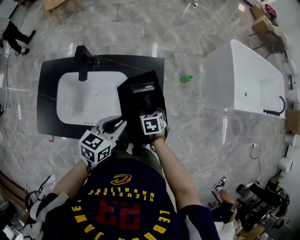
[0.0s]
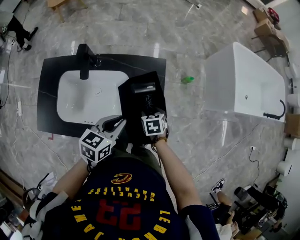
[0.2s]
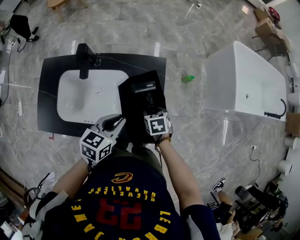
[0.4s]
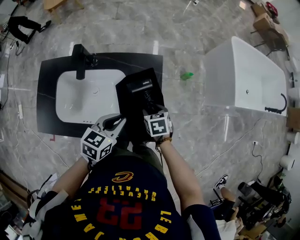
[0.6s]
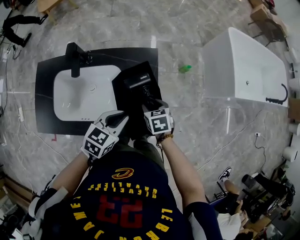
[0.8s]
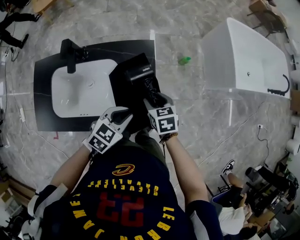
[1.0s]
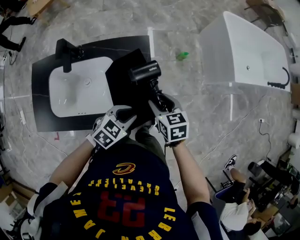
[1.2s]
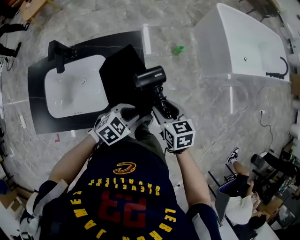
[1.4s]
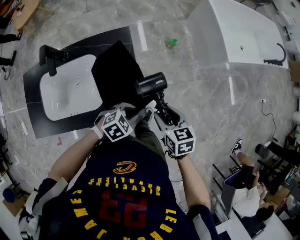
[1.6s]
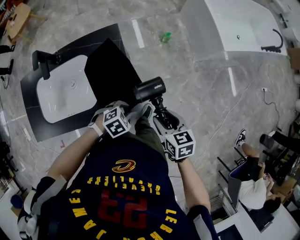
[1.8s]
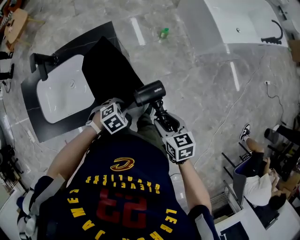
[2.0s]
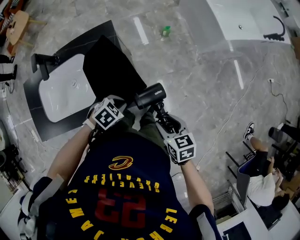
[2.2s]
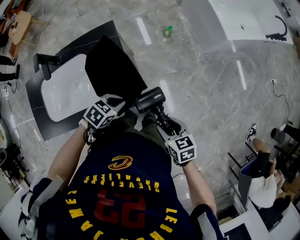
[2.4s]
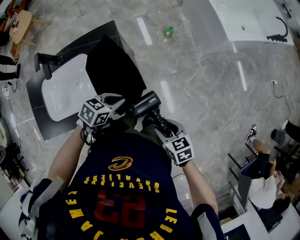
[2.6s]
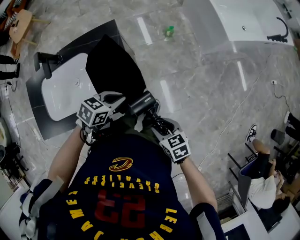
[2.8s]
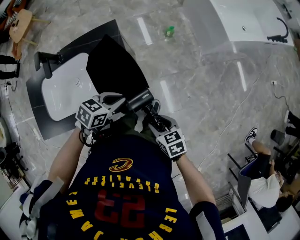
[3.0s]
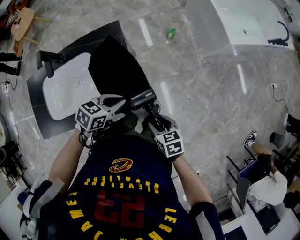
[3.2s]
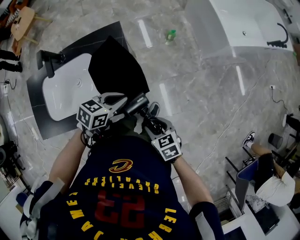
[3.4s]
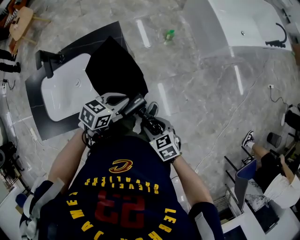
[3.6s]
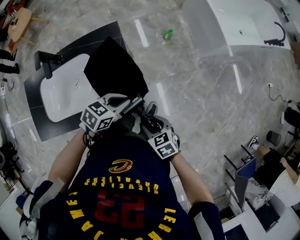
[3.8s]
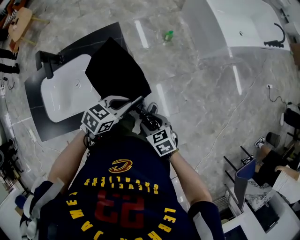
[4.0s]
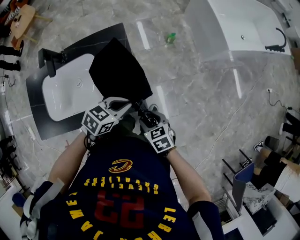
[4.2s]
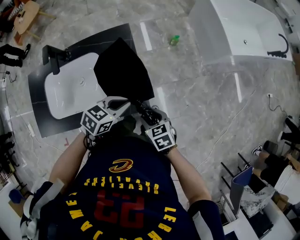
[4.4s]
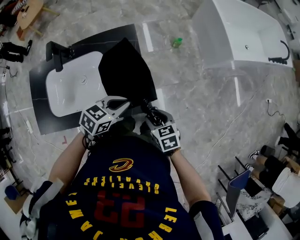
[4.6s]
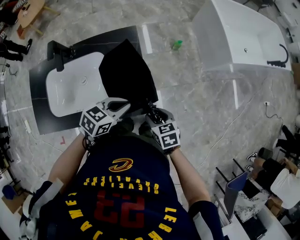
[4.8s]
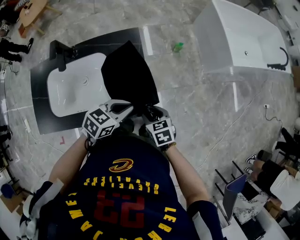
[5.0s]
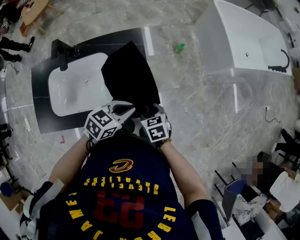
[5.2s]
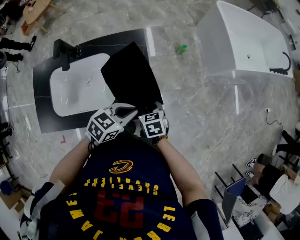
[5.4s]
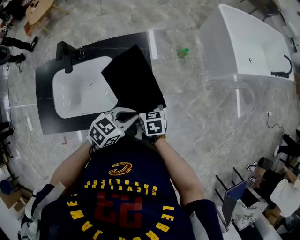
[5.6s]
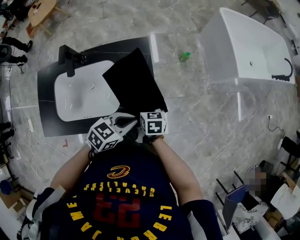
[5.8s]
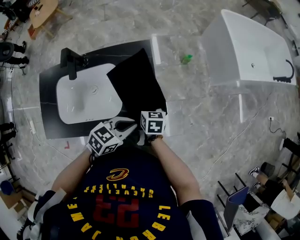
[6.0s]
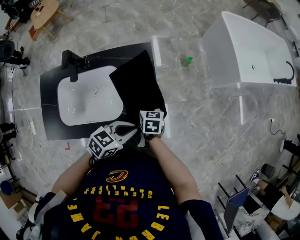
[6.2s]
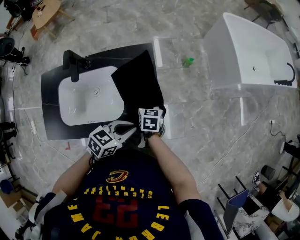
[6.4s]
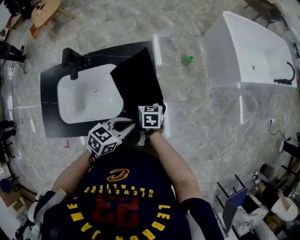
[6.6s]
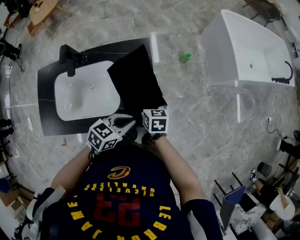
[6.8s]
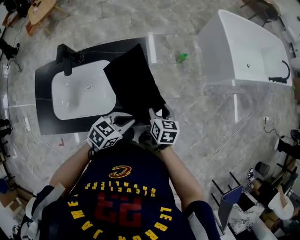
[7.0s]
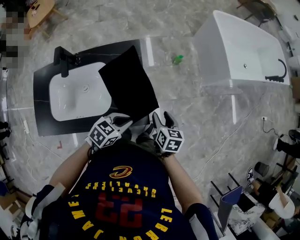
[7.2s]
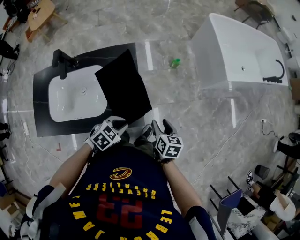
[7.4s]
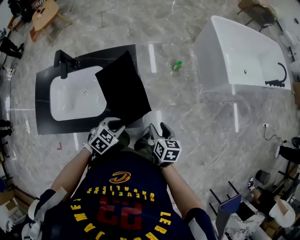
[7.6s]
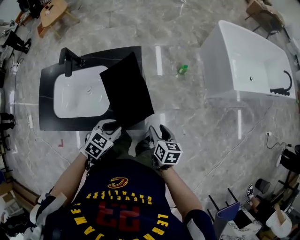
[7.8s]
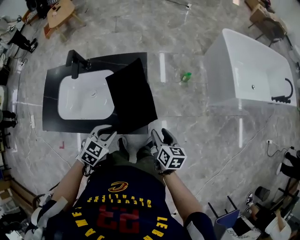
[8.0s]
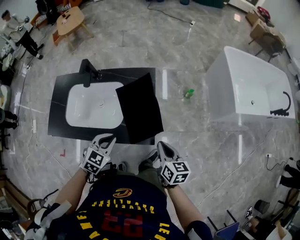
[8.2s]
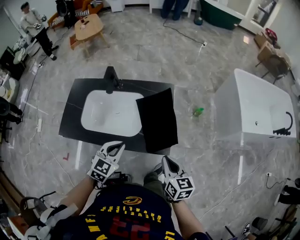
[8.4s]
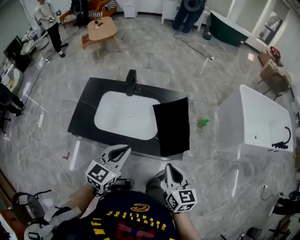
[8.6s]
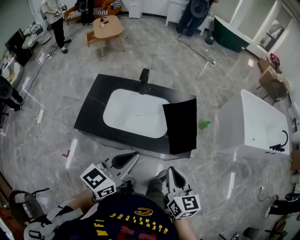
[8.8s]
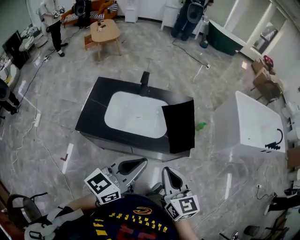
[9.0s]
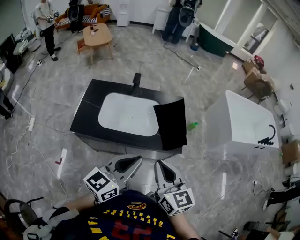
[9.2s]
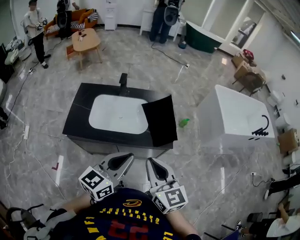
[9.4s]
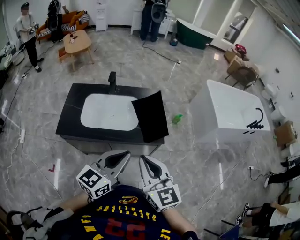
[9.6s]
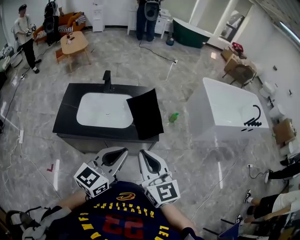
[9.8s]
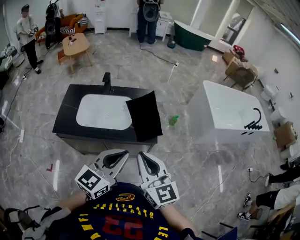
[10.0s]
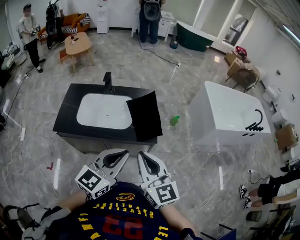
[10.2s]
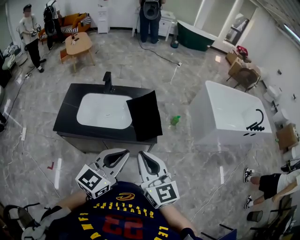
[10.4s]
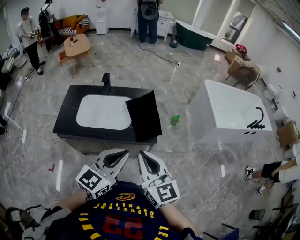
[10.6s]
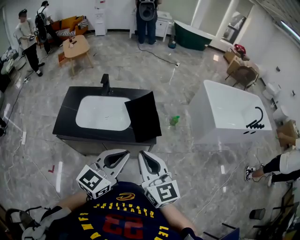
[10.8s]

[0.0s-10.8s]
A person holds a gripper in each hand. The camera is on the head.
0.0s to 1.6s: The right gripper ends up roughly 25 cm from where it was, and swivels roughly 20 degrees, while the left gripper changes place by roughly 20 cm, and rotates roughly 60 degrees.
1.6s to 3.0s: The right gripper changes place by some 15 cm. The left gripper changes place by approximately 5 cm, and changes its angle by about 30 degrees.
3.0s to 4.6s: The right gripper travels to the left and forward by roughly 10 cm.
4.6s to 6.2s: The right gripper shifts approximately 15 cm forward and to the left.
6.2s to 7.8s: The right gripper heads to the right, covering about 20 cm; the left gripper swivels roughly 30 degrees.
7.8s to 9.2s: The left gripper shifts about 40 cm upward, backward and to the left, and points its fingers some 50 degrees further upward. Meanwhile the right gripper heads upward, to the left and backward, covering some 50 cm, changes its angle by approximately 40 degrees, and closes.
9.2s to 10.8s: The two grippers go some 15 cm to the right.

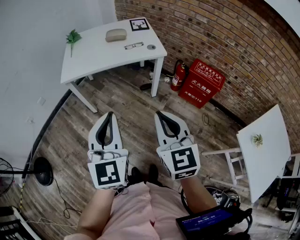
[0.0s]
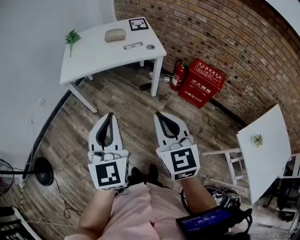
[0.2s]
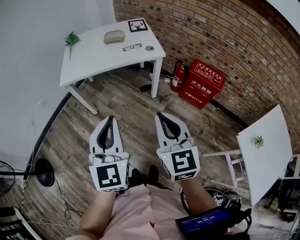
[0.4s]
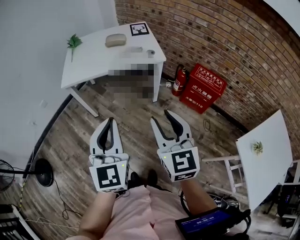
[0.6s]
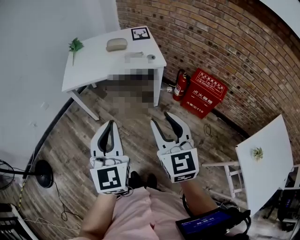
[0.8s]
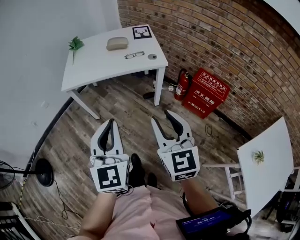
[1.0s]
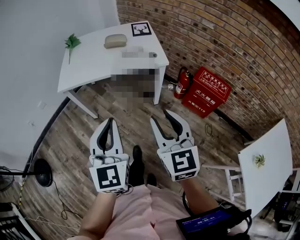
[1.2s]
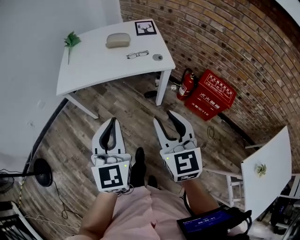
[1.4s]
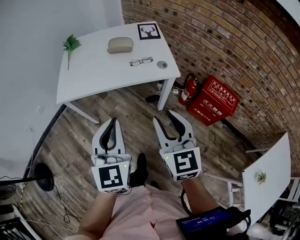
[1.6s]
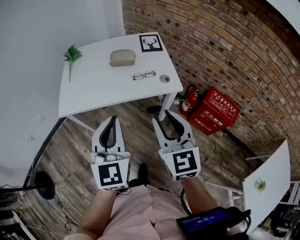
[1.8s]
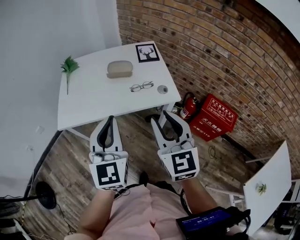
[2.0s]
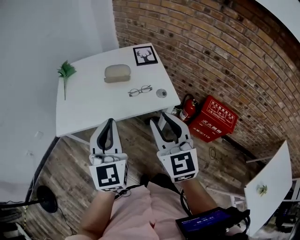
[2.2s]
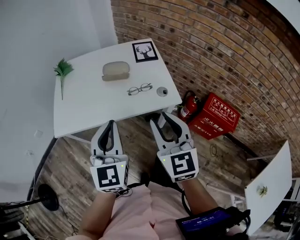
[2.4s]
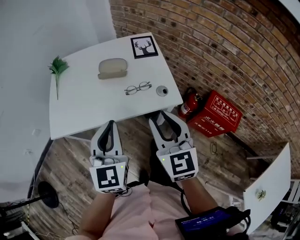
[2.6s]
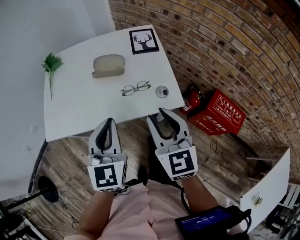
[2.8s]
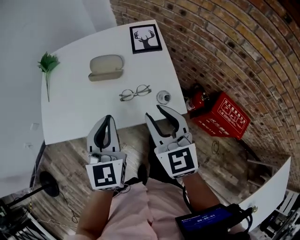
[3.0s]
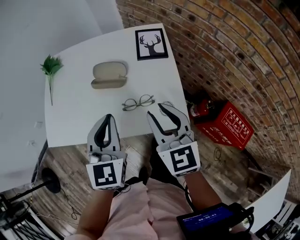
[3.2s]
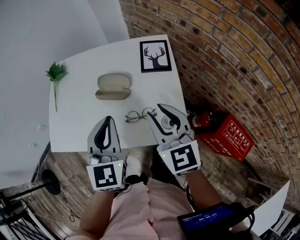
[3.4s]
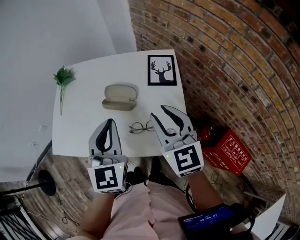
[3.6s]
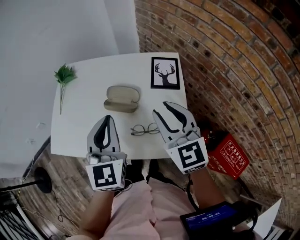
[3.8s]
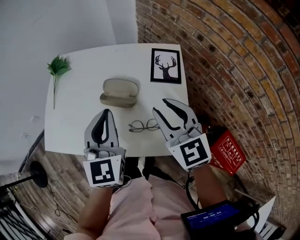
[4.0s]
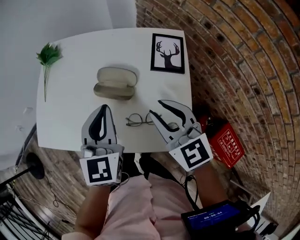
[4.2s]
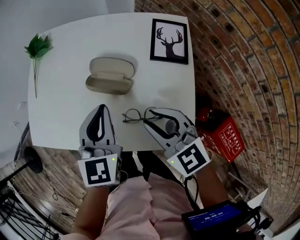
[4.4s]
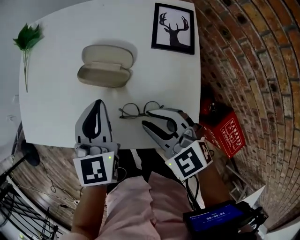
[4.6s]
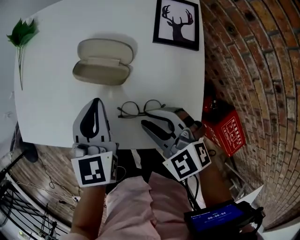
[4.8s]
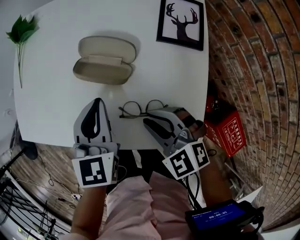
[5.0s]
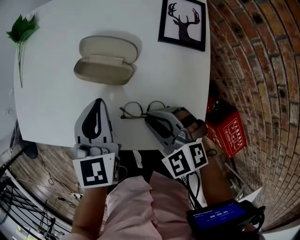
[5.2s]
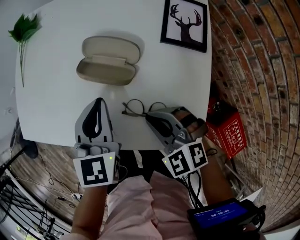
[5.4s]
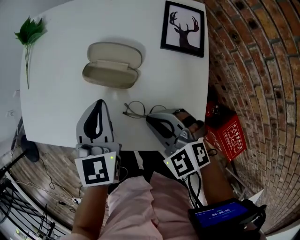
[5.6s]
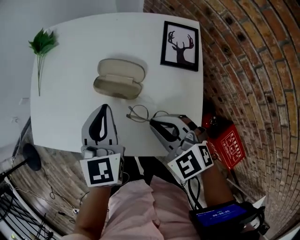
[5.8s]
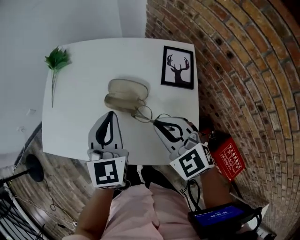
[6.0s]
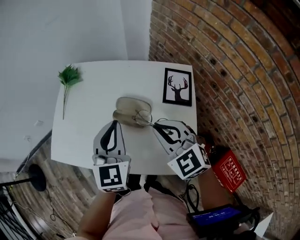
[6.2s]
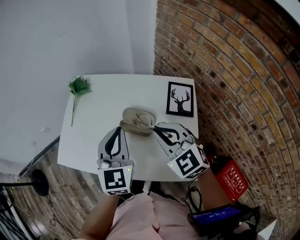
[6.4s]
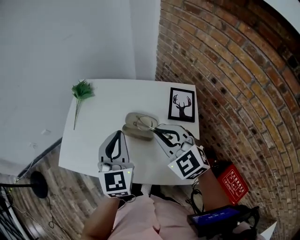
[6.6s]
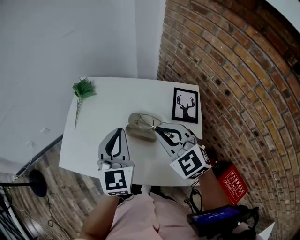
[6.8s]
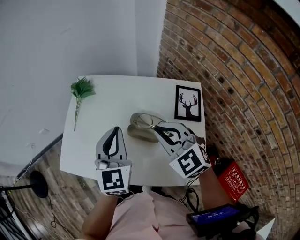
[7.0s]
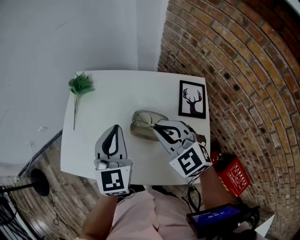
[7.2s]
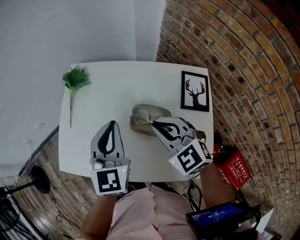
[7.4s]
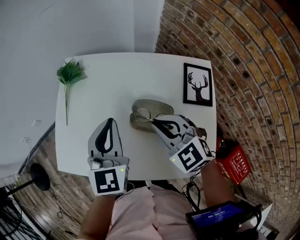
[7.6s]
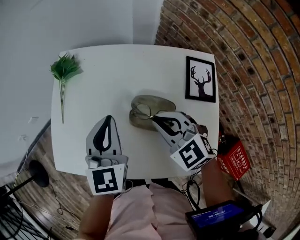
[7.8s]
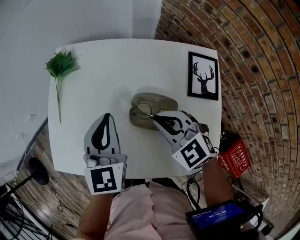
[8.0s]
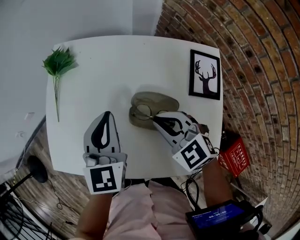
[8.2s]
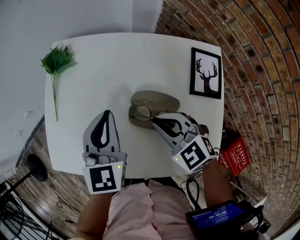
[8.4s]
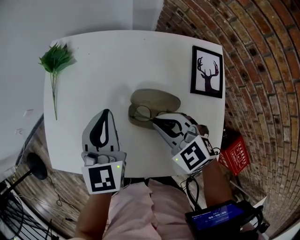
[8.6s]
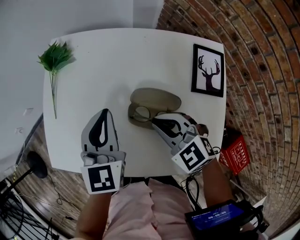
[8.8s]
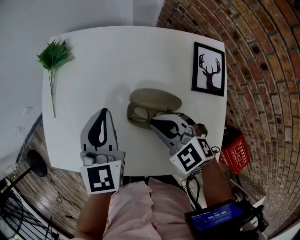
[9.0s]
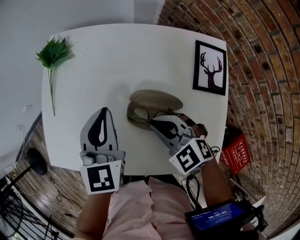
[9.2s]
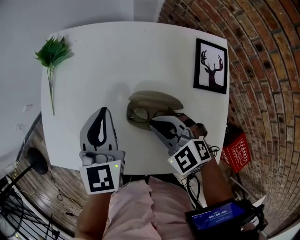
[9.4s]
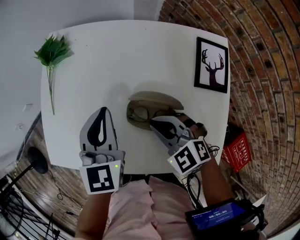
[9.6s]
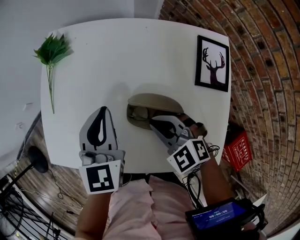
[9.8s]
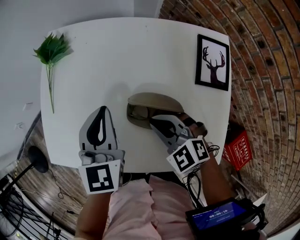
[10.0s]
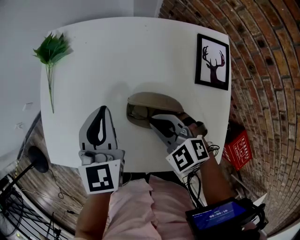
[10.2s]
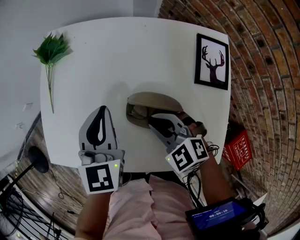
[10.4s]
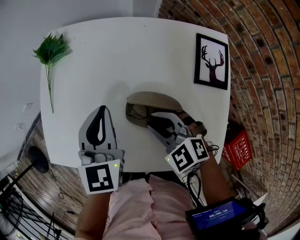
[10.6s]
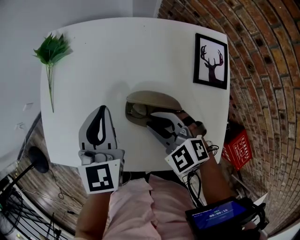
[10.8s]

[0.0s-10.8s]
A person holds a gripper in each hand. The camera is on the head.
0.0s to 1.6s: Both grippers move forward, about 20 cm. The right gripper opens.
1.6s to 3.0s: Both grippers move forward, roughly 30 cm.
3.0s to 4.6s: The grippers both shift forward and downward by approximately 20 cm. The right gripper rotates about 50 degrees.
4.6s to 6.2s: The left gripper goes some 10 cm upward, while the right gripper heads upward and forward, covering roughly 15 cm, and closes its fingers.
6.2s to 7.8s: The left gripper heads forward and to the left, covering roughly 10 cm, while the right gripper moves forward, downward and to the left, some 15 cm.
7.8s to 9.2s: The right gripper goes some 5 cm downward.
9.2s to 10.8s: The grippers stay close to where they were, moving slightly.

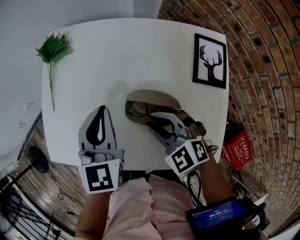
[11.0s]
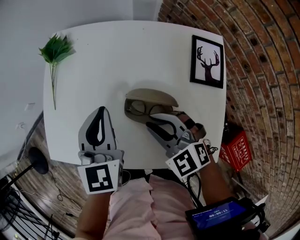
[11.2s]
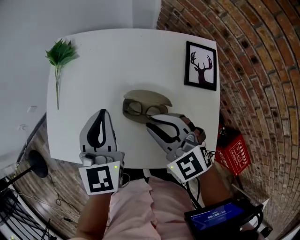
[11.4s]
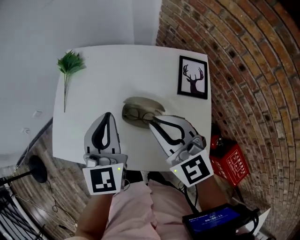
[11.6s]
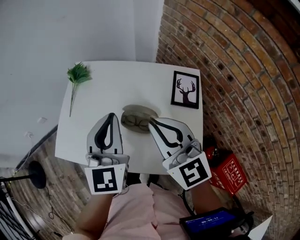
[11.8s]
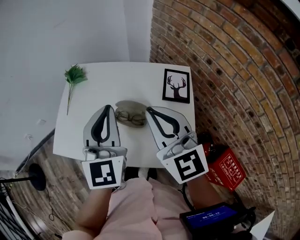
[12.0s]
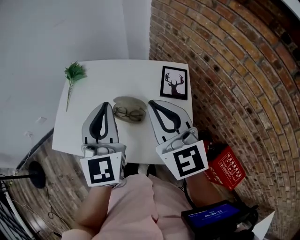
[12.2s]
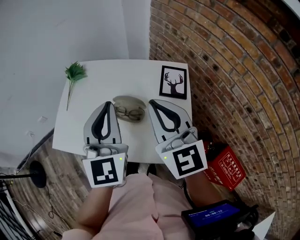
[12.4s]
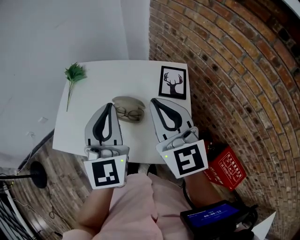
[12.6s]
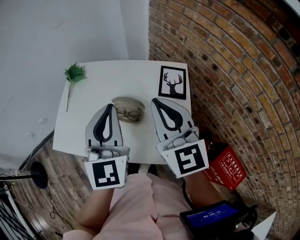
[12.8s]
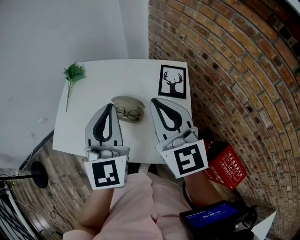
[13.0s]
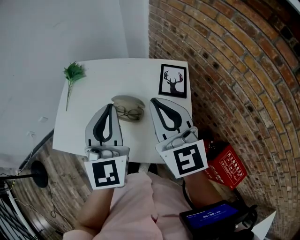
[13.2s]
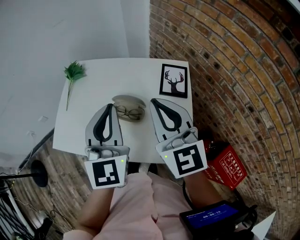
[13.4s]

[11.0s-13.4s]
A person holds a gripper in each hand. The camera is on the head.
11.0s to 12.2s: The left gripper shifts roughly 25 cm upward and backward, and turns by about 20 degrees. The right gripper heads upward, covering roughly 30 cm, tips its fingers upward by roughly 40 degrees, and closes its fingers.
12.2s to 13.4s: The grippers make only small movements.
